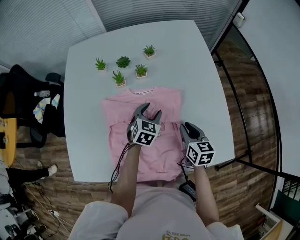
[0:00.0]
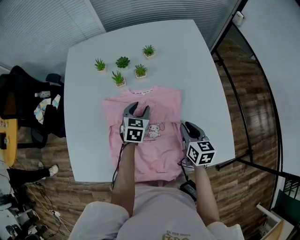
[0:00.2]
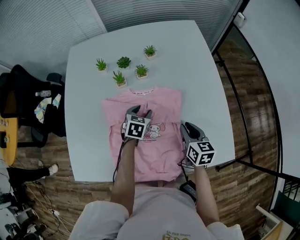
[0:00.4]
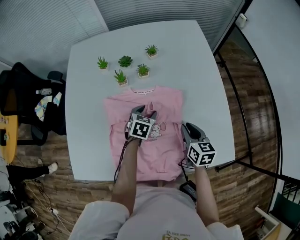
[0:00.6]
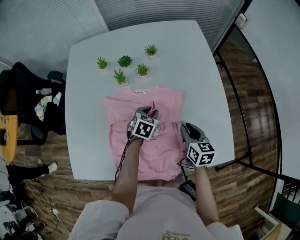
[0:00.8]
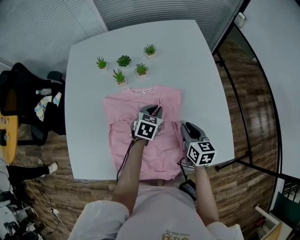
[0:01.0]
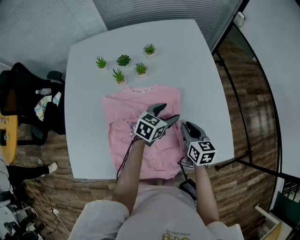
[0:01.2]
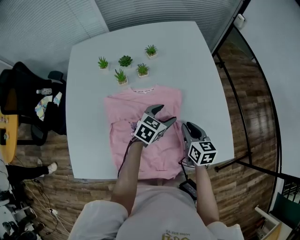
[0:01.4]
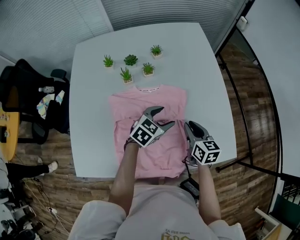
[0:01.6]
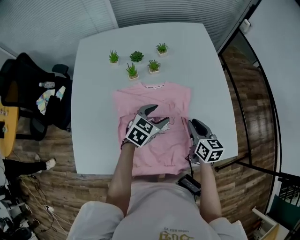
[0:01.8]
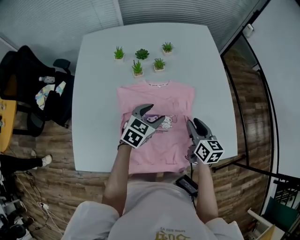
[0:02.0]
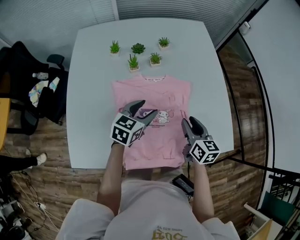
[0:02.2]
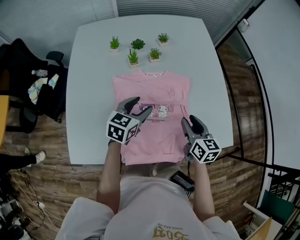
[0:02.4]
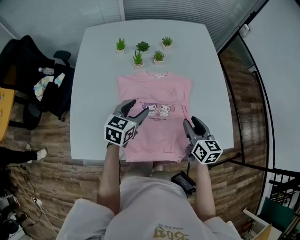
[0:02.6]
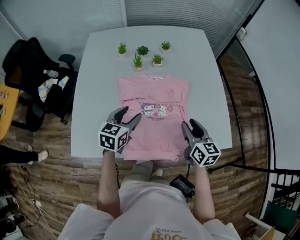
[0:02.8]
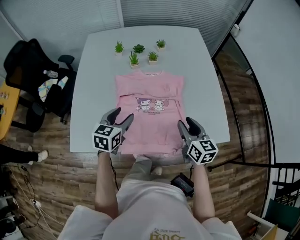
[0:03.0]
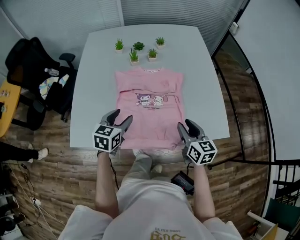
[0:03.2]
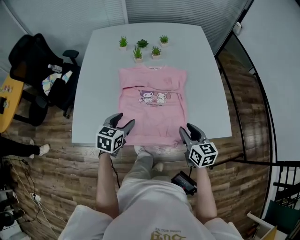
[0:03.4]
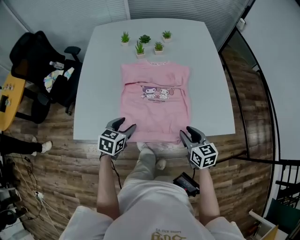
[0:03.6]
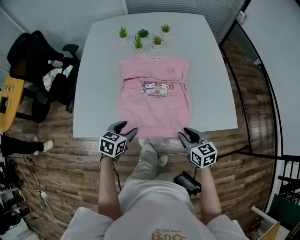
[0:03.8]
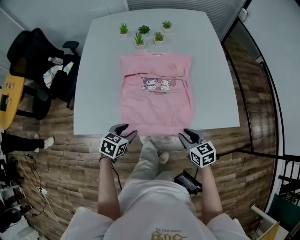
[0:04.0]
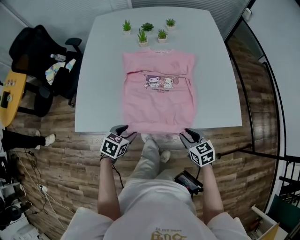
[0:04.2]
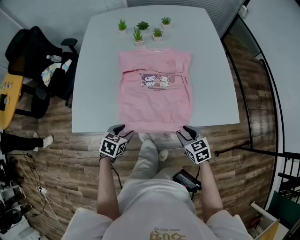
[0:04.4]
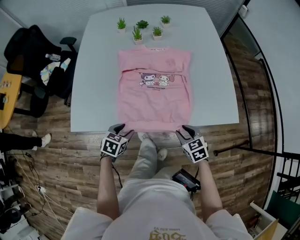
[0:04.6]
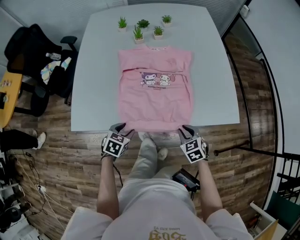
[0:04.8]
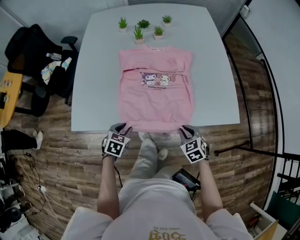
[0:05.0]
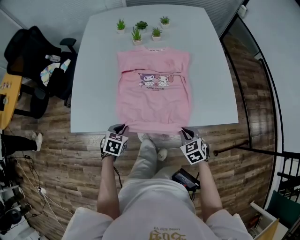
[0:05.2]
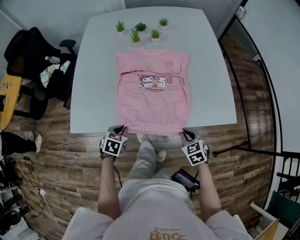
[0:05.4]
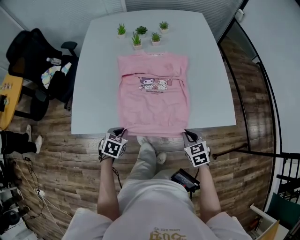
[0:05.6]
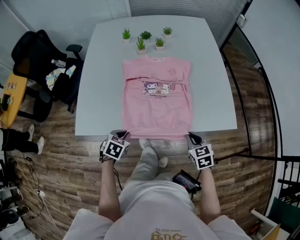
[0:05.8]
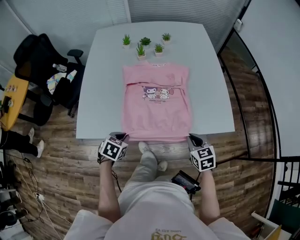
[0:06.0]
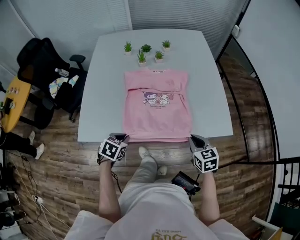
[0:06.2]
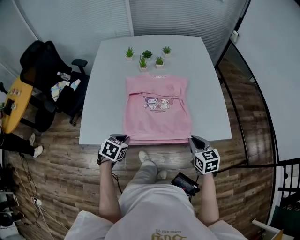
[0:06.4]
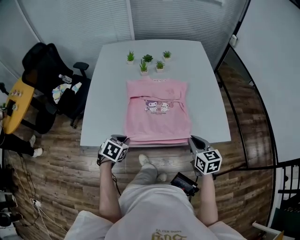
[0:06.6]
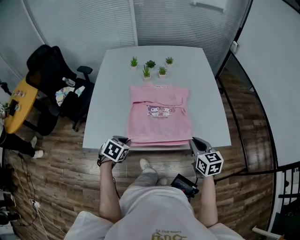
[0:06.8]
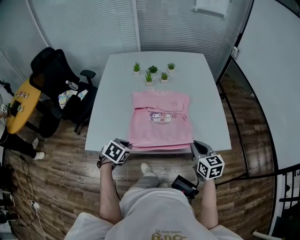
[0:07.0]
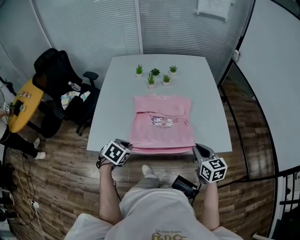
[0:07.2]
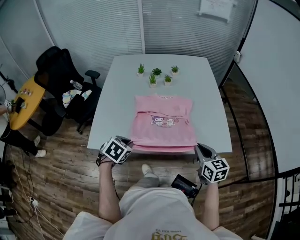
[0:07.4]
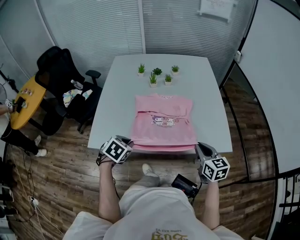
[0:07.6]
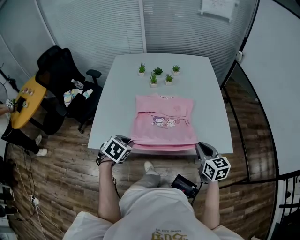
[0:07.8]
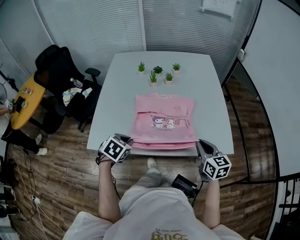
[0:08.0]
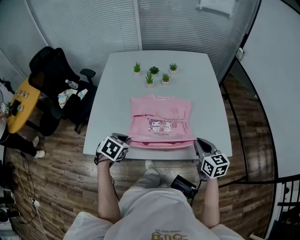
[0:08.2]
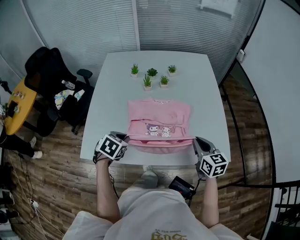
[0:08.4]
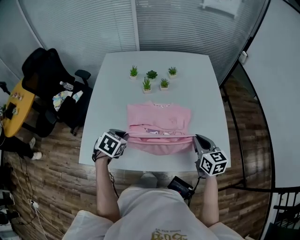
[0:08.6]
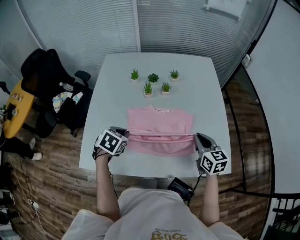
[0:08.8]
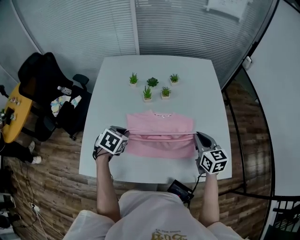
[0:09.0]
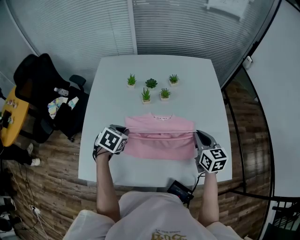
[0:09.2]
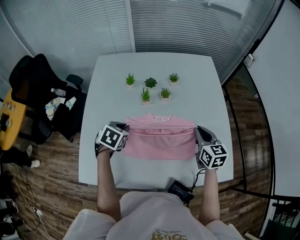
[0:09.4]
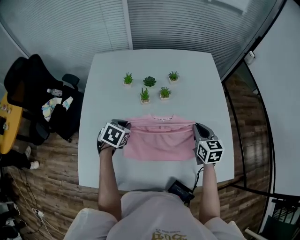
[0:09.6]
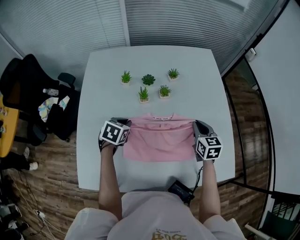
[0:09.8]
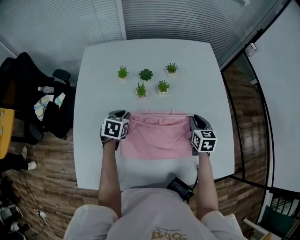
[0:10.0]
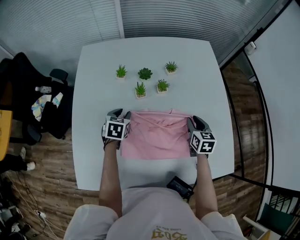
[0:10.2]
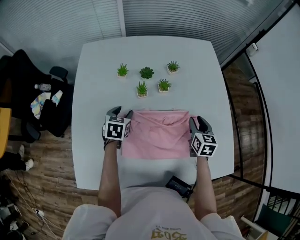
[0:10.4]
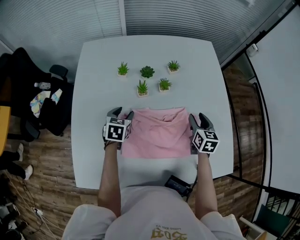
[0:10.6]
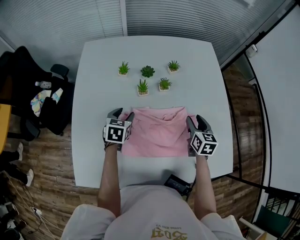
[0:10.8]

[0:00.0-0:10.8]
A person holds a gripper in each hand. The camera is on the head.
0:00.0 to 0:01.6: The left gripper goes left and right, some 15 cm each way, reversing 2 times, rotates some 20 degrees, and closes and opens again.
0:01.6 to 0:03.0: The right gripper shifts about 15 cm backward and upward. The left gripper travels to the left and backward by roughly 25 cm, and changes its angle by about 30 degrees.
0:03.0 to 0:04.6: The right gripper travels downward and backward by some 20 cm, and turns by approximately 40 degrees, while the left gripper shifts about 25 cm backward and downward, and turns by roughly 30 degrees.
0:04.6 to 0:06.2: Both grippers travel together upward, some 10 cm. The right gripper closes its fingers. The left gripper closes its fingers.
0:06.2 to 0:07.8: Both grippers travel together upward, approximately 10 cm.
0:07.8 to 0:09.2: The grippers both shift forward by approximately 25 cm.
0:09.2 to 0:10.8: The right gripper travels downward and forward by roughly 15 cm, and opens, while the left gripper heads forward and downward, covering roughly 15 cm, and opens its fingers.

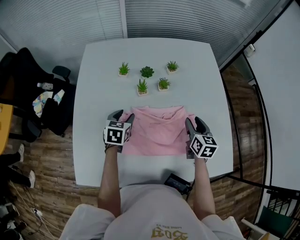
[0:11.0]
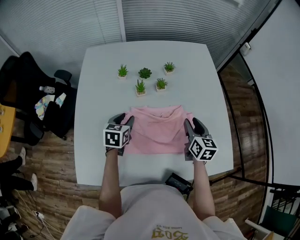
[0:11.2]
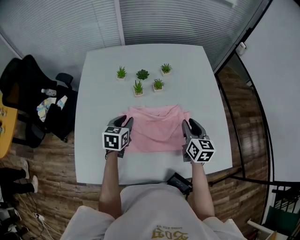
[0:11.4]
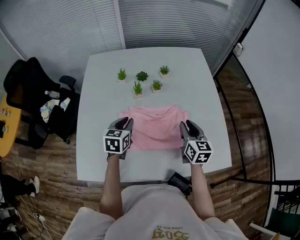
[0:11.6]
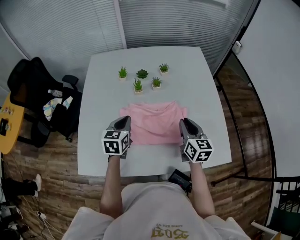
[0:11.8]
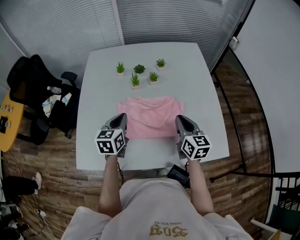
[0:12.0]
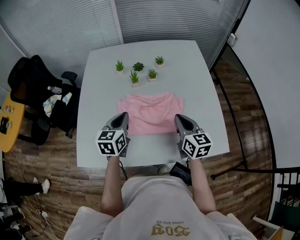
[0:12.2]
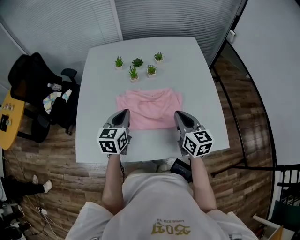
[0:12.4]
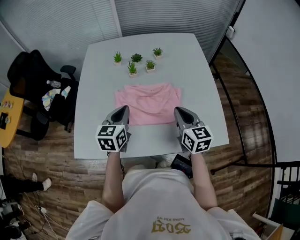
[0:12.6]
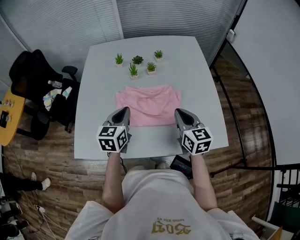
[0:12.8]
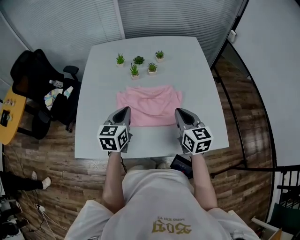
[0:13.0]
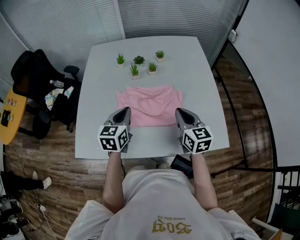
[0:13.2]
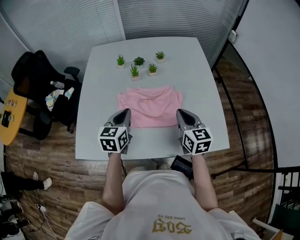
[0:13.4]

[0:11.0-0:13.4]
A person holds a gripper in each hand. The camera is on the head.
0:11.0 to 0:12.2: The right gripper shifts roughly 20 cm backward and upward, and closes its fingers. Meanwhile the left gripper moves backward, upward and to the right, roughly 20 cm, swivels approximately 20 degrees, and closes.
0:12.2 to 0:13.4: The grippers move only a little.

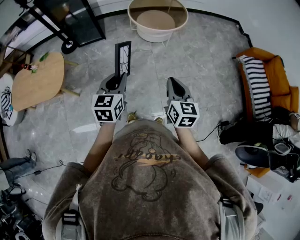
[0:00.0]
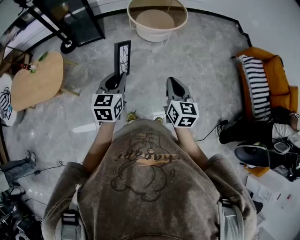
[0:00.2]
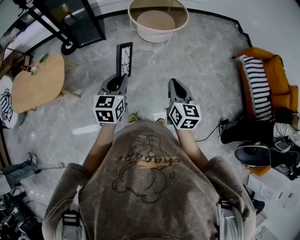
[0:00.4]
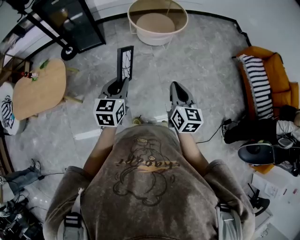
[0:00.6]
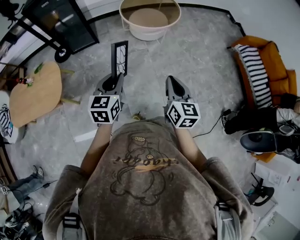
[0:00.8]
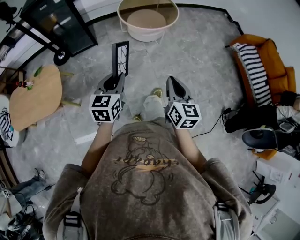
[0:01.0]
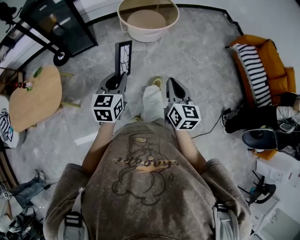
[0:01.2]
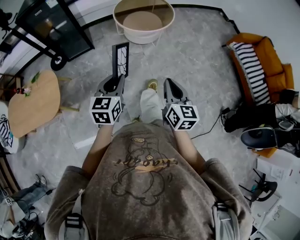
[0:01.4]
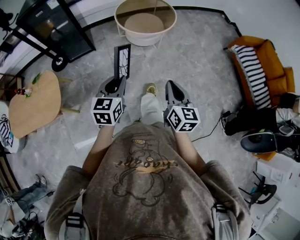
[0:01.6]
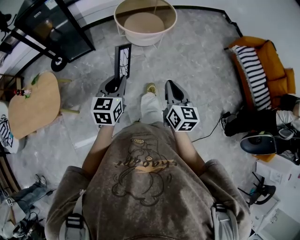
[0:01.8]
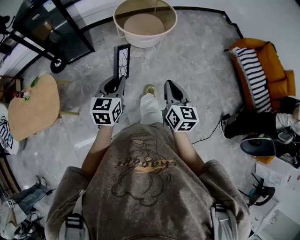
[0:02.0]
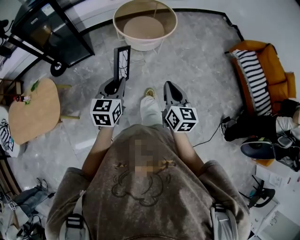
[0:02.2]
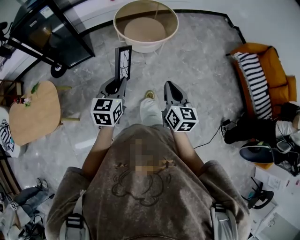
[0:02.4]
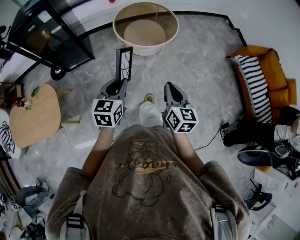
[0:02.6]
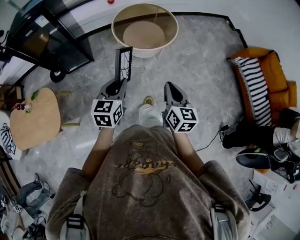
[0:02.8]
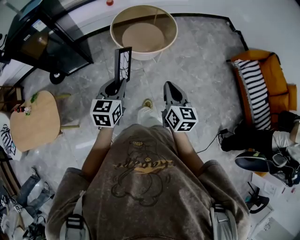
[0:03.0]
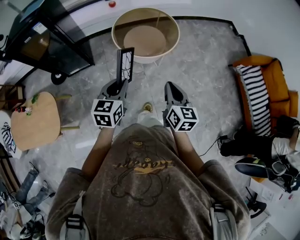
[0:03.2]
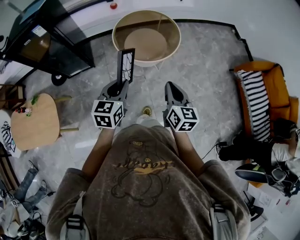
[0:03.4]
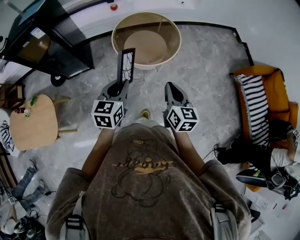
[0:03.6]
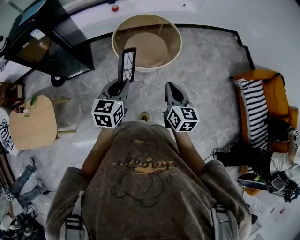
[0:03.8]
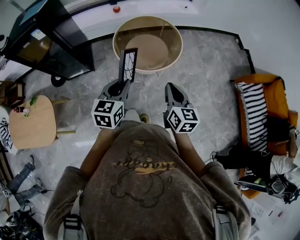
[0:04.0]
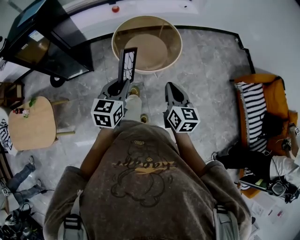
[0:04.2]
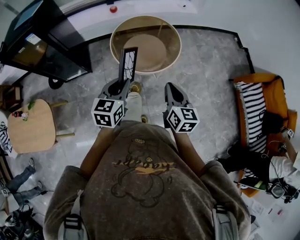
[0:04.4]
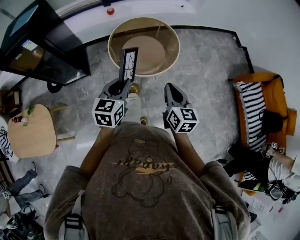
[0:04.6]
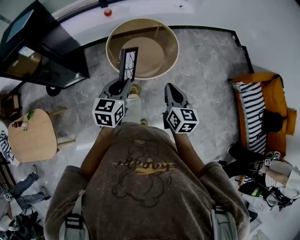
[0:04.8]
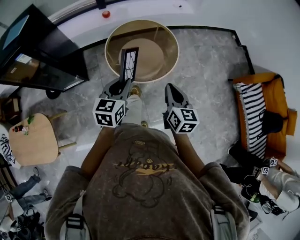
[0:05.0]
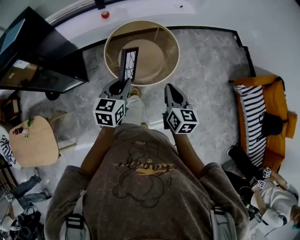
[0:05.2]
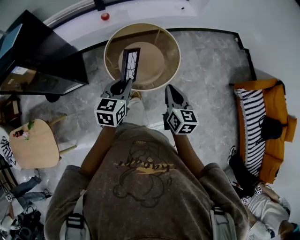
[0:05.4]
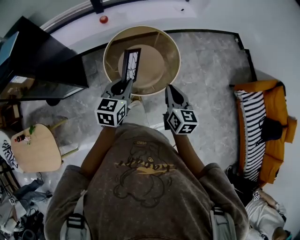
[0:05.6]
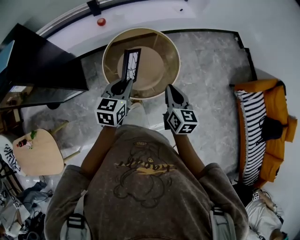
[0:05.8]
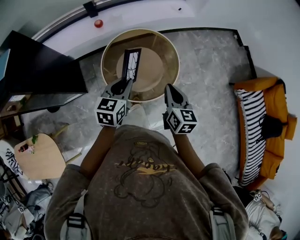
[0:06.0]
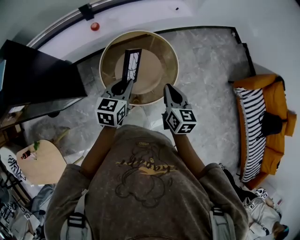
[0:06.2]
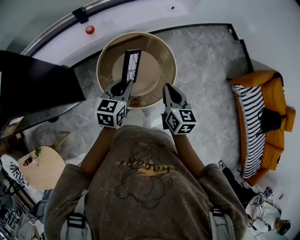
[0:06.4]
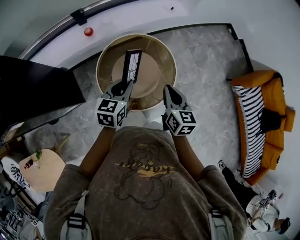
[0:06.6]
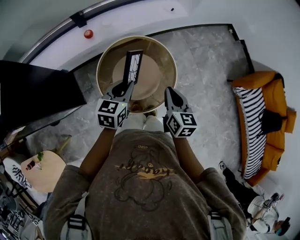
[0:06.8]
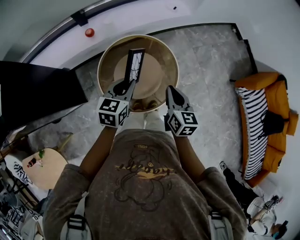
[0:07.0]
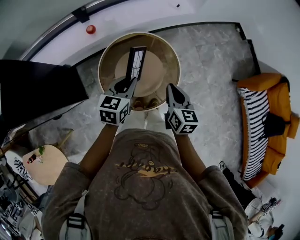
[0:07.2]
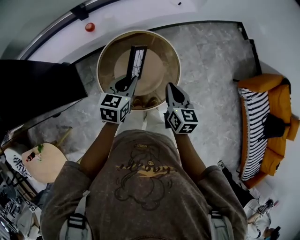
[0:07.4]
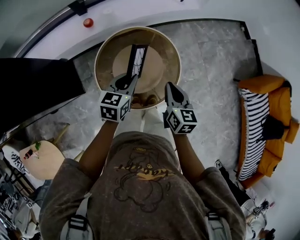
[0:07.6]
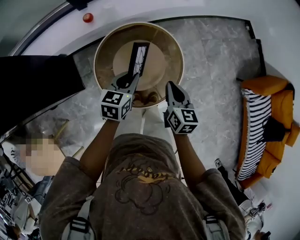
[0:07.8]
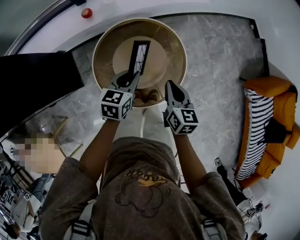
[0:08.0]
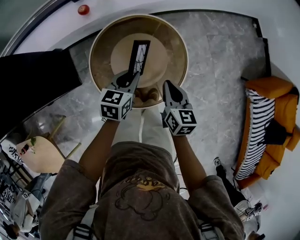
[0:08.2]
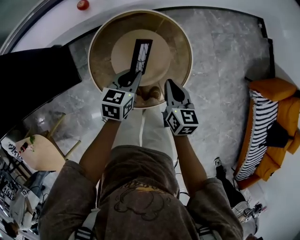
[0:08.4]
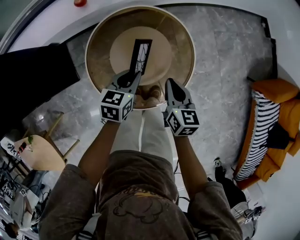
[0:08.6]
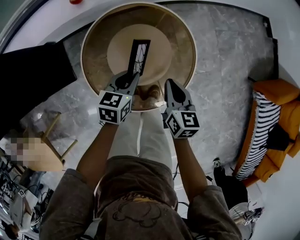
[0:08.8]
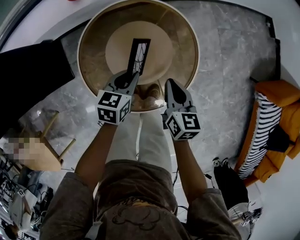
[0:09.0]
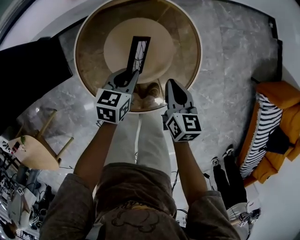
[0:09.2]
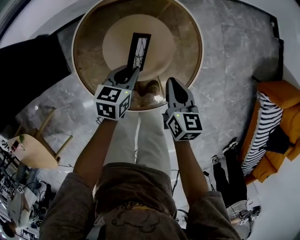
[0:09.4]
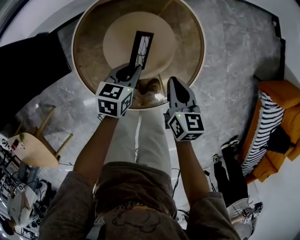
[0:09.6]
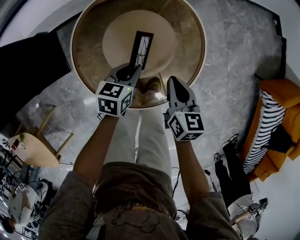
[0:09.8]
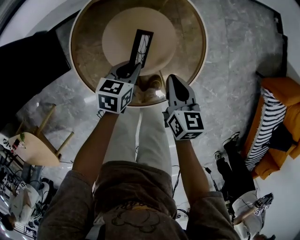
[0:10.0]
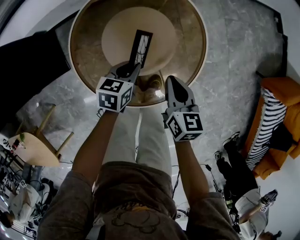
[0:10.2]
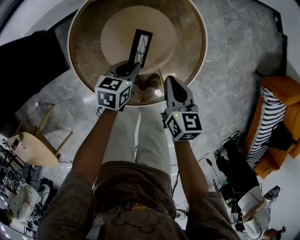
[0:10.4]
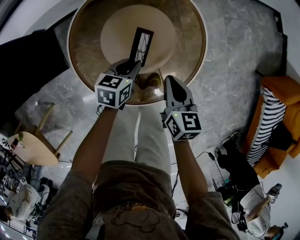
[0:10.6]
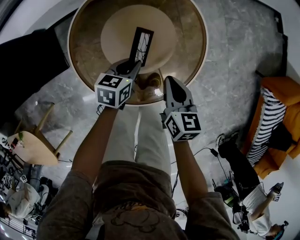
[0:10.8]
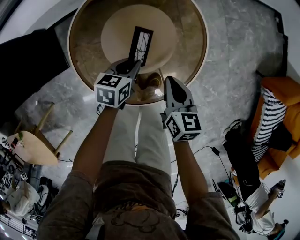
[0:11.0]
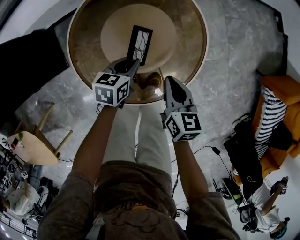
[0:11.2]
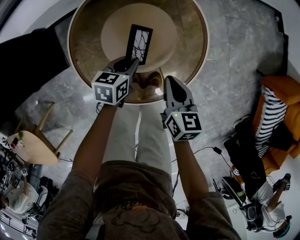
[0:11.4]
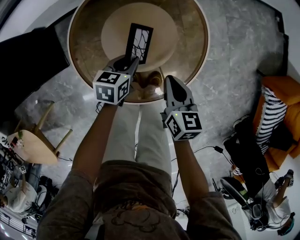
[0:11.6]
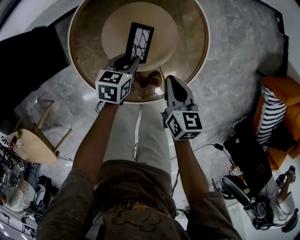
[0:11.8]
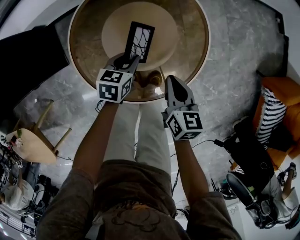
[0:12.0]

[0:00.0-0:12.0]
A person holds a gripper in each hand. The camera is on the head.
0:00.0 to 0:01.6: The left gripper shifts some 5 cm forward.
0:01.6 to 0:03.0: The two grippers go approximately 20 cm forward.
0:03.0 to 0:04.4: The grippers both shift forward by some 15 cm.
0:04.4 to 0:06.0: The grippers both shift forward by some 25 cm.
0:06.0 to 0:07.6: Both grippers move forward and downward, some 15 cm.
0:07.6 to 0:09.0: Both grippers travel together downward, about 20 cm.
0:09.0 to 0:10.4: The right gripper shifts by some 5 cm, while the left gripper travels downward by approximately 10 cm.
0:10.4 to 0:12.0: There are only small adjustments of the grippers.
